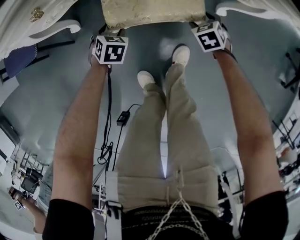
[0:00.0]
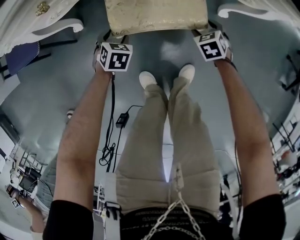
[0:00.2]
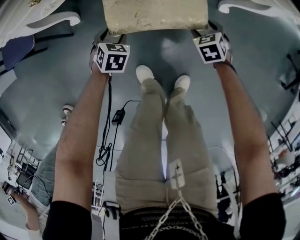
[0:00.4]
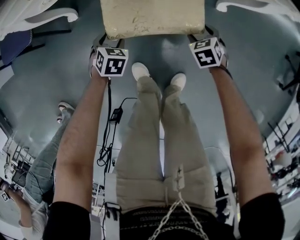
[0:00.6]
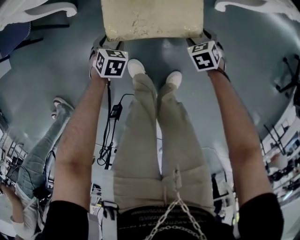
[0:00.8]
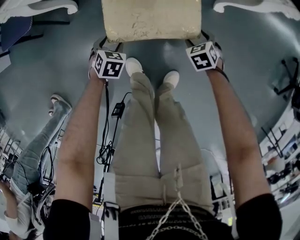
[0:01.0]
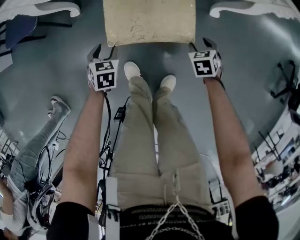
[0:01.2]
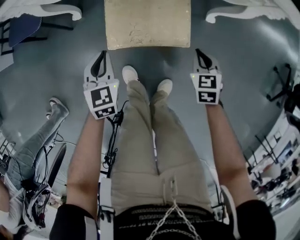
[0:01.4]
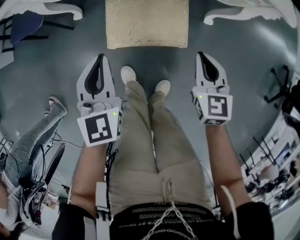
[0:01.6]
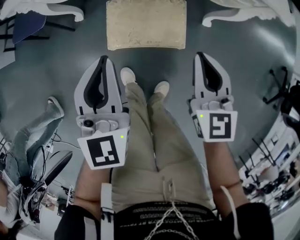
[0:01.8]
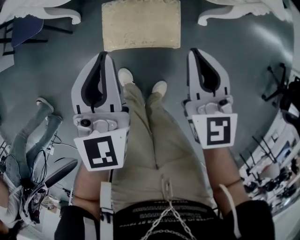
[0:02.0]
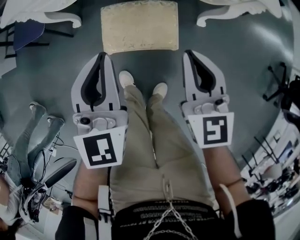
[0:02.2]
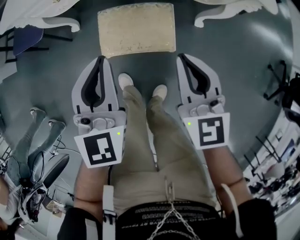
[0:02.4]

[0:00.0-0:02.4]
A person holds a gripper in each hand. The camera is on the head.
0:00.0 to 0:01.2: The right gripper moves some 15 cm. Meanwhile the left gripper ends up about 15 cm from where it was.
0:01.2 to 0:02.4: Both grippers move upward, approximately 35 cm. The left gripper tips its fingers upward by approximately 40 degrees, and closes its fingers. Meanwhile the right gripper points its fingers roughly 50 degrees further upward, and closes its fingers.

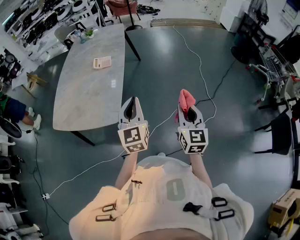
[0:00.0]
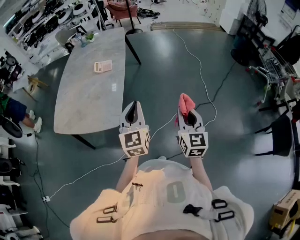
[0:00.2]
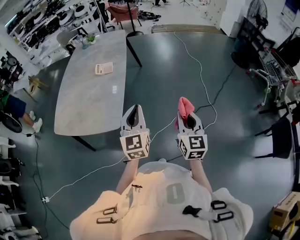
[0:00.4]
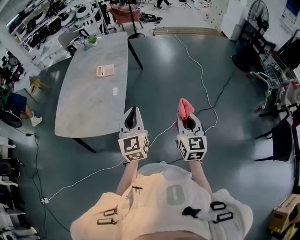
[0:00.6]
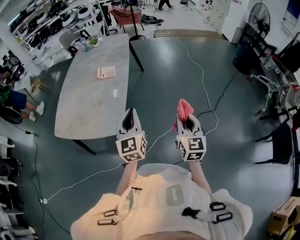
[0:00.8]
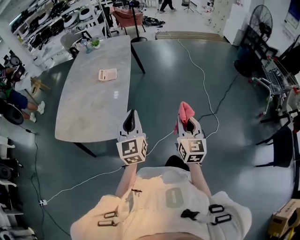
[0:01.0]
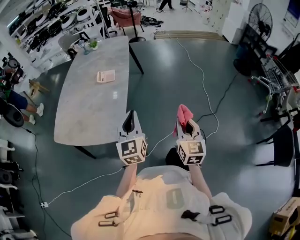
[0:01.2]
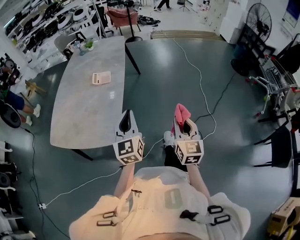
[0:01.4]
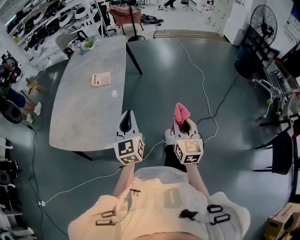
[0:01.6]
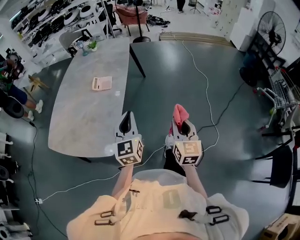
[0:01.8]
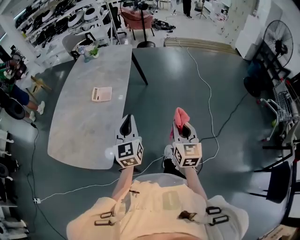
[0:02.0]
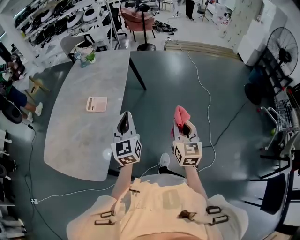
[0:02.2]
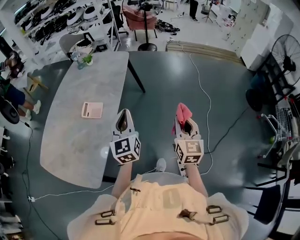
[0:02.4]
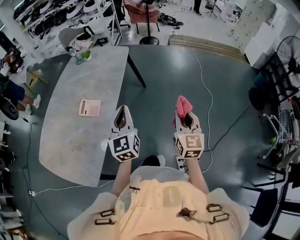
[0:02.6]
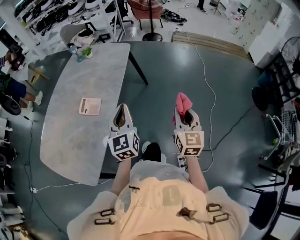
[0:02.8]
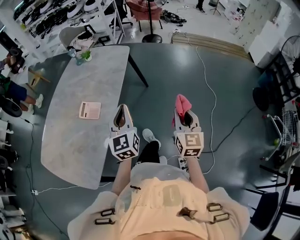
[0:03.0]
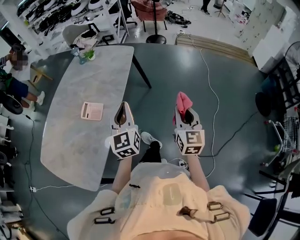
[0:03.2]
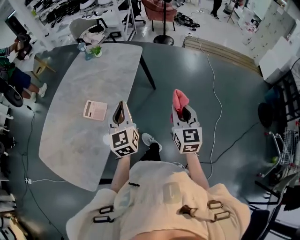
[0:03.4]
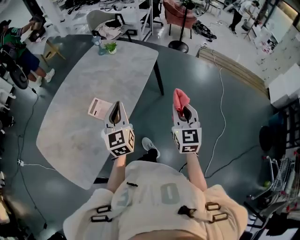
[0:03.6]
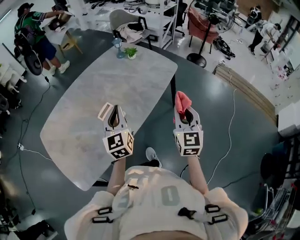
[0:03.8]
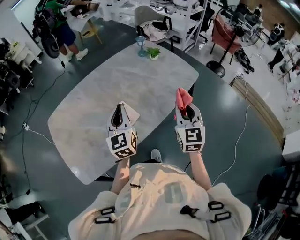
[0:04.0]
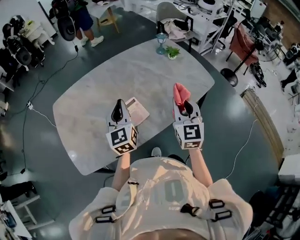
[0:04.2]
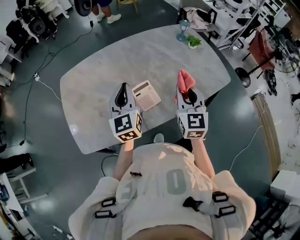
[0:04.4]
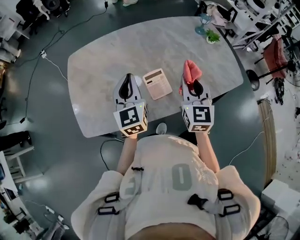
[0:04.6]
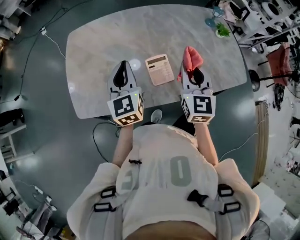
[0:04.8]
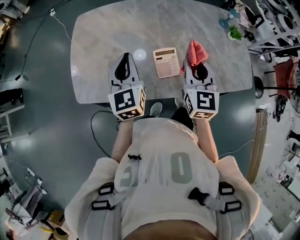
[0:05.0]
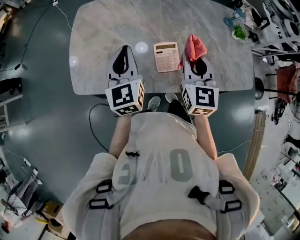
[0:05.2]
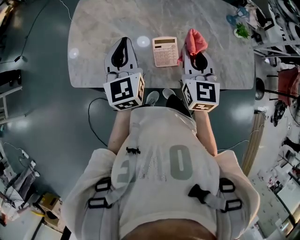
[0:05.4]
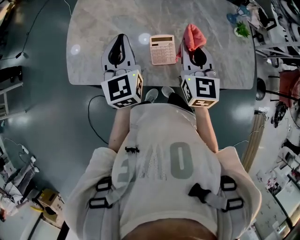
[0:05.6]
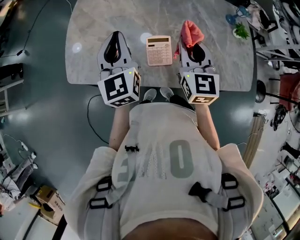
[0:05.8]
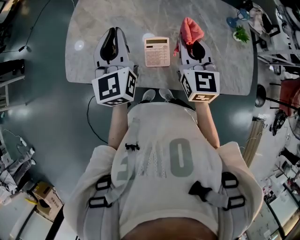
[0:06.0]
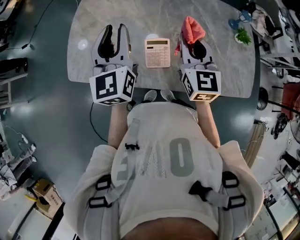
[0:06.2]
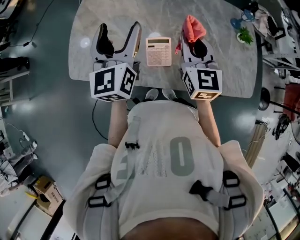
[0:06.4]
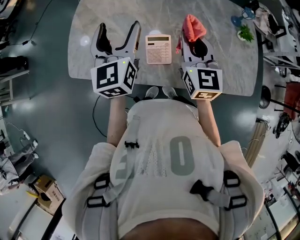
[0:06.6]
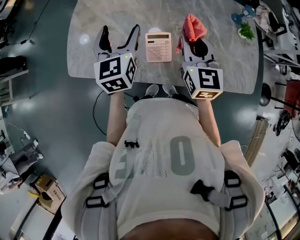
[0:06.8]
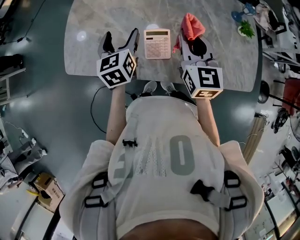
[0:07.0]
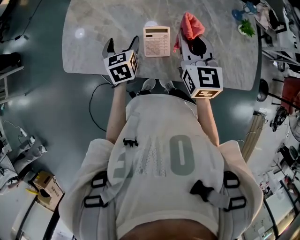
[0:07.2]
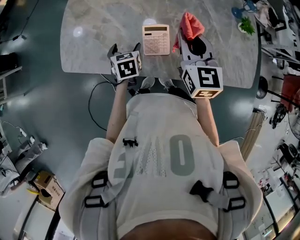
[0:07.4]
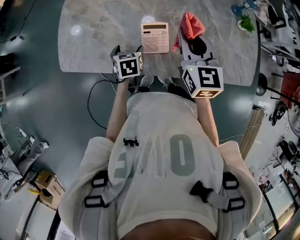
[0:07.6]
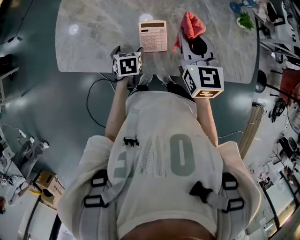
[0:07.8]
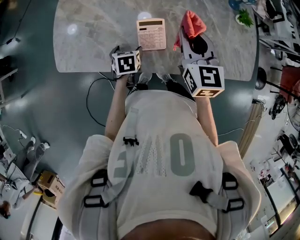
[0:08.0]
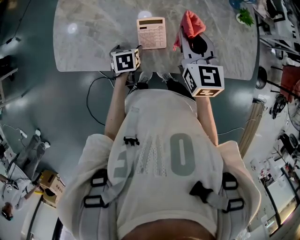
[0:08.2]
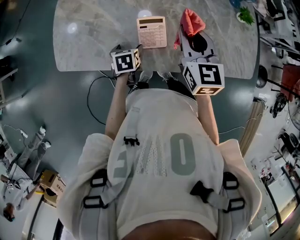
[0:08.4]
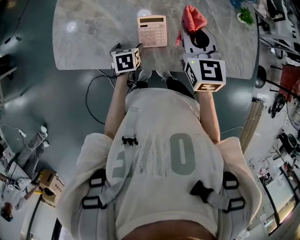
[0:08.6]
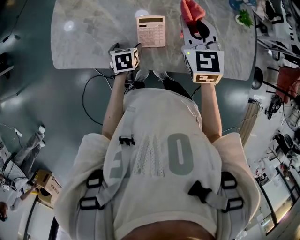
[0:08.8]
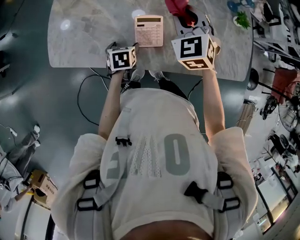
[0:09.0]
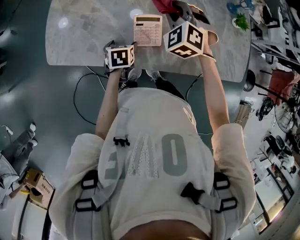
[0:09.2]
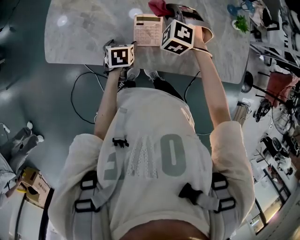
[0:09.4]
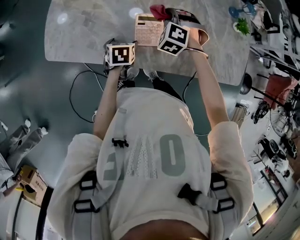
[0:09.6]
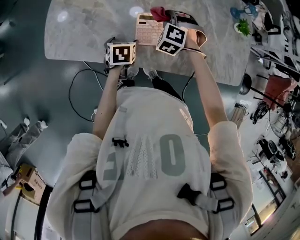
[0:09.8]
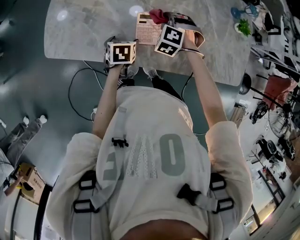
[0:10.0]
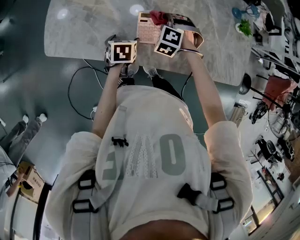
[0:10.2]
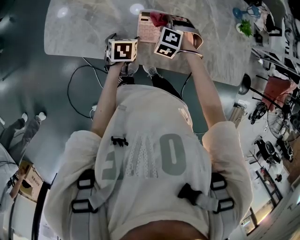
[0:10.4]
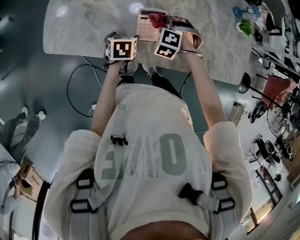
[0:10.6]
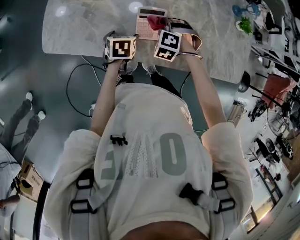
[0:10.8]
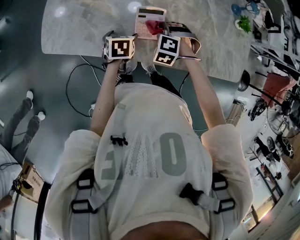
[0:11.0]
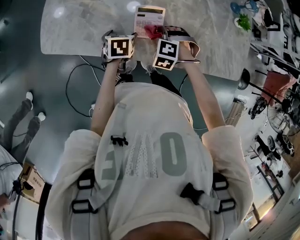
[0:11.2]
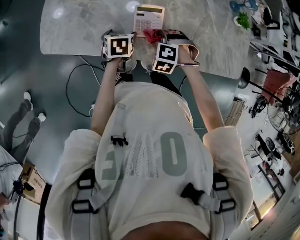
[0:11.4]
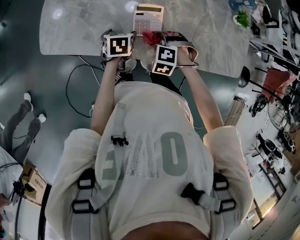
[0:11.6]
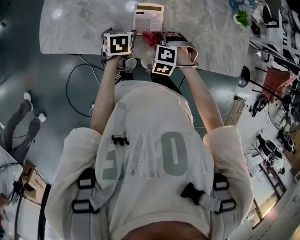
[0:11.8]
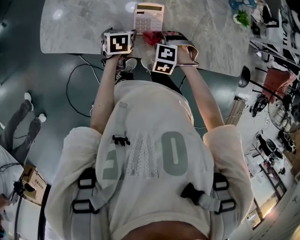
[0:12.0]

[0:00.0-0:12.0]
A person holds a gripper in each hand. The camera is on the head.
0:00.0 to 0:01.6: Both grippers move forward, approximately 10 cm.
0:01.6 to 0:03.0: Both grippers are carried forward, roughly 40 cm.
0:03.0 to 0:04.4: The right gripper ends up some 50 cm from where it was, and changes its angle by roughly 60 degrees; the left gripper changes place by approximately 35 cm, and changes its angle by some 50 degrees.
0:04.4 to 0:06.0: The left gripper changes its angle by some 30 degrees; the right gripper changes place by some 10 cm, and rotates some 30 degrees.
0:06.0 to 0:07.6: The left gripper shifts roughly 30 cm downward, tilts its fingers approximately 50 degrees downward, and opens up.
0:07.6 to 0:09.0: The right gripper shifts approximately 5 cm forward, and swivels approximately 40 degrees.
0:09.0 to 0:10.4: The right gripper shifts roughly 20 cm downward, and rotates some 50 degrees.
0:10.4 to 0:12.0: The right gripper goes about 10 cm backward.

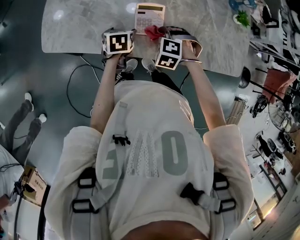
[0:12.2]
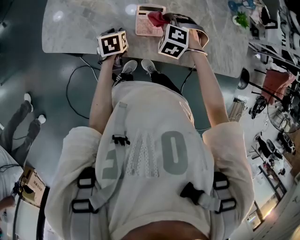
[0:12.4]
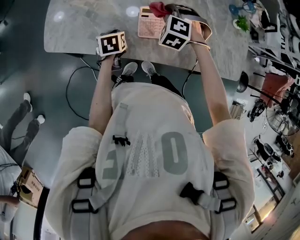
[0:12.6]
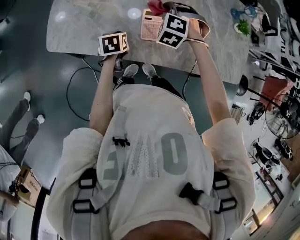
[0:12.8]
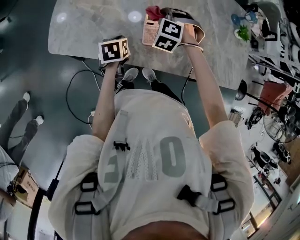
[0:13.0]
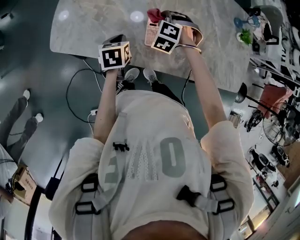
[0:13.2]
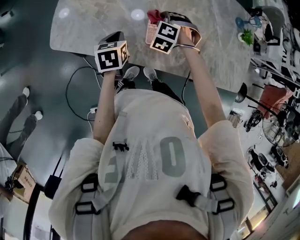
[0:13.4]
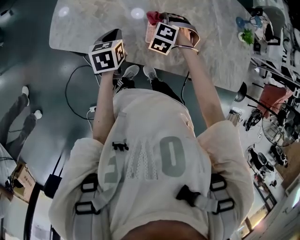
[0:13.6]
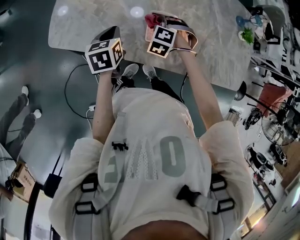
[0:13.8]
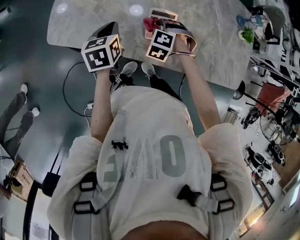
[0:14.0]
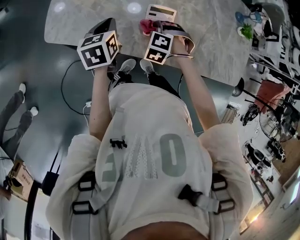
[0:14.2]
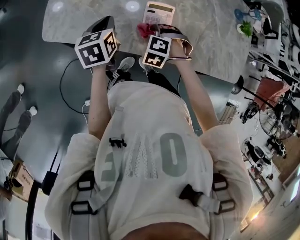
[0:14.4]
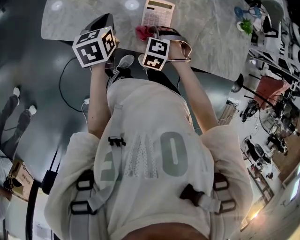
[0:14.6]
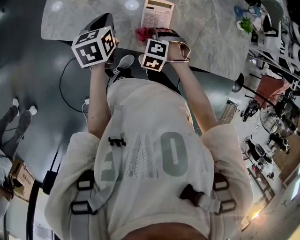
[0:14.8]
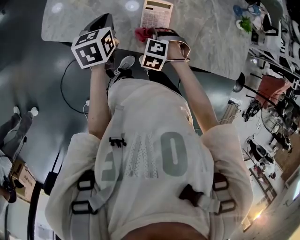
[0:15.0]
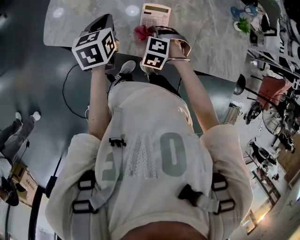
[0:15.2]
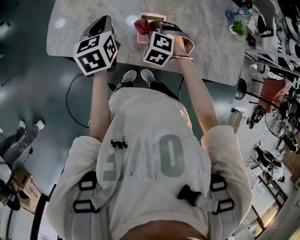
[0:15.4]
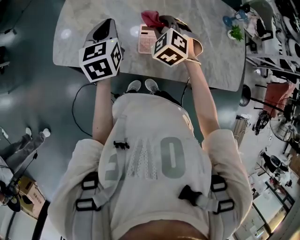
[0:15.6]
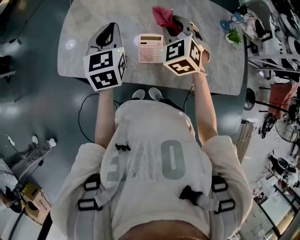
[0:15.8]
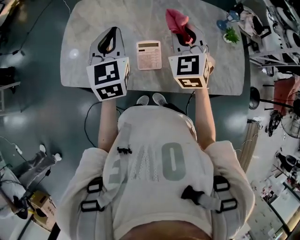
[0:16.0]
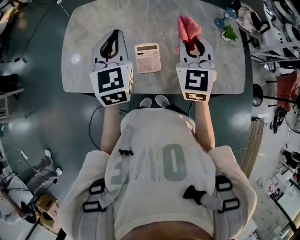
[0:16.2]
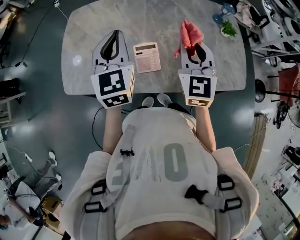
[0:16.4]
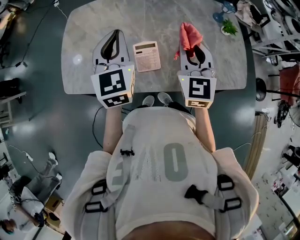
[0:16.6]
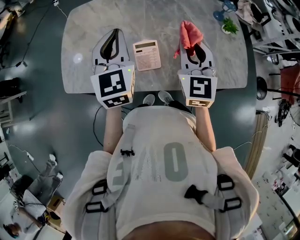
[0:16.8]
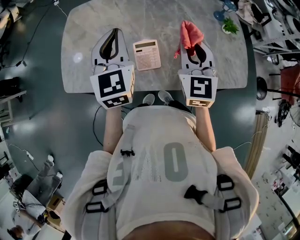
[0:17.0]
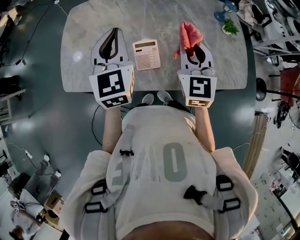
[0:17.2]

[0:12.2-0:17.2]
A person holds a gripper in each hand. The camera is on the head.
0:12.2 to 0:13.8: The right gripper heads forward and to the left, covering approximately 10 cm; the left gripper travels upward and to the left by some 10 cm, and closes up.
0:13.8 to 0:15.6: Both grippers travel together upward, some 15 cm. The left gripper rotates approximately 20 degrees. Meanwhile the right gripper rotates roughly 30 degrees.
0:15.6 to 0:17.2: Both grippers travel together to the right and upward, about 15 cm. The right gripper angles its fingers upward, by some 30 degrees. Meanwhile the left gripper rotates roughly 30 degrees.

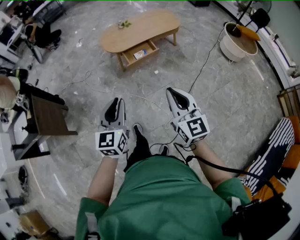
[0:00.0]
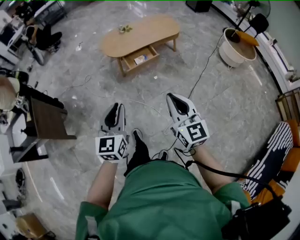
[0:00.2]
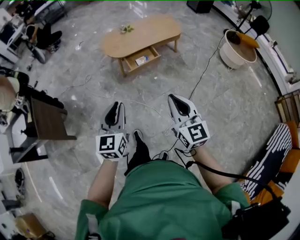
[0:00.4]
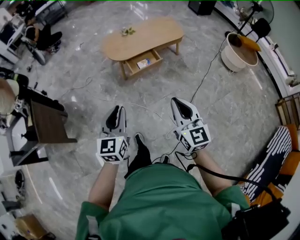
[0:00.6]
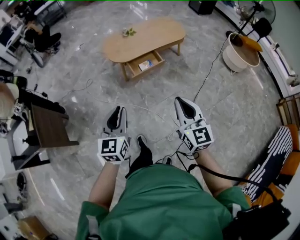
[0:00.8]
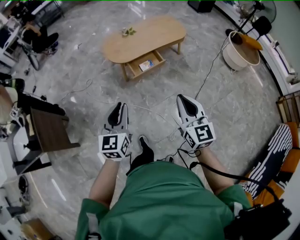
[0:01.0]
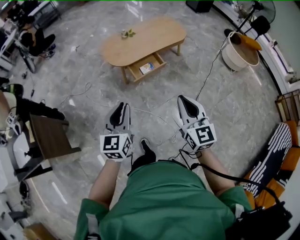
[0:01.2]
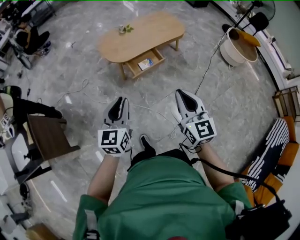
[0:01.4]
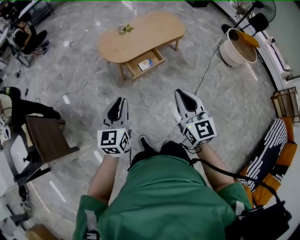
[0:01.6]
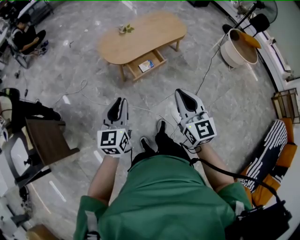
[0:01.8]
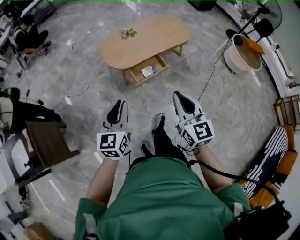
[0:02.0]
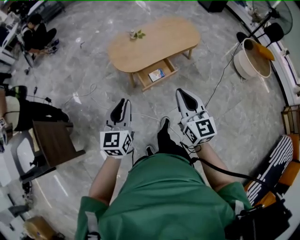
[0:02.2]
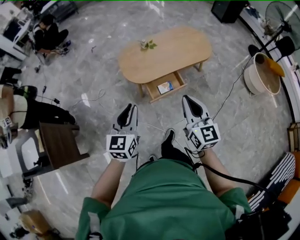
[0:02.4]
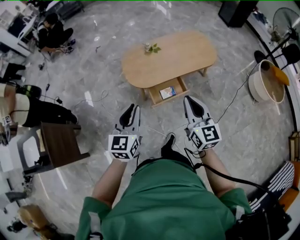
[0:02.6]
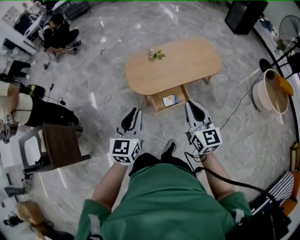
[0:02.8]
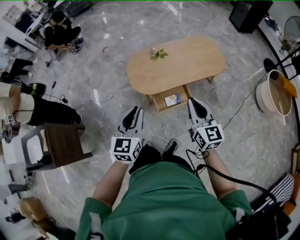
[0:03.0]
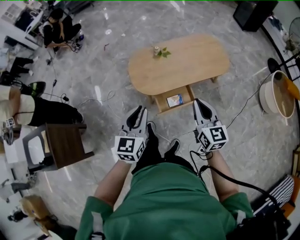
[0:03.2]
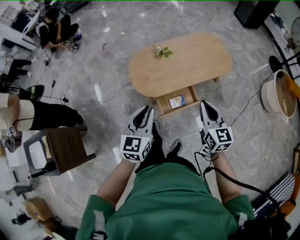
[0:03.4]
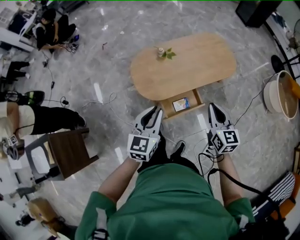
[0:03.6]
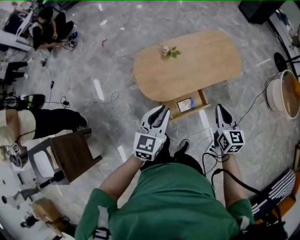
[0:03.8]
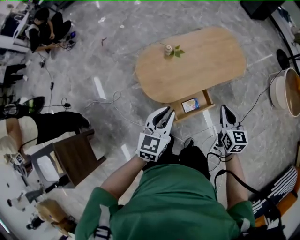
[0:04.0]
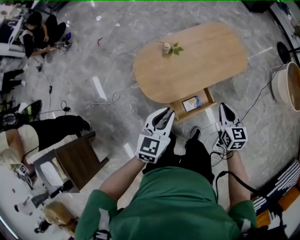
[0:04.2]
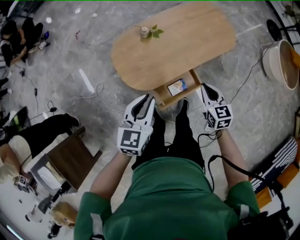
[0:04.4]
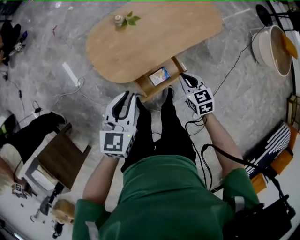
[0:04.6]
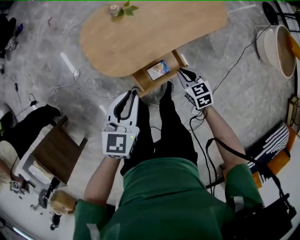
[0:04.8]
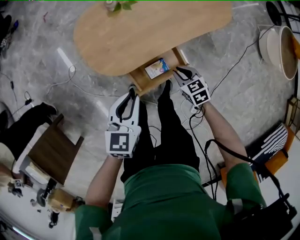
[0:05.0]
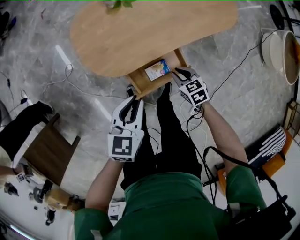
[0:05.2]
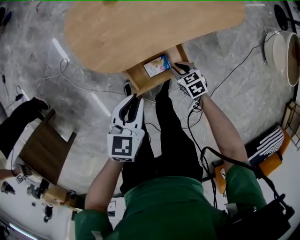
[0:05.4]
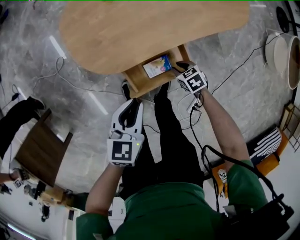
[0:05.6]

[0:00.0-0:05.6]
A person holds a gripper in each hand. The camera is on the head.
0:00.0 to 0:01.4: The grippers both shift forward and to the left by some 20 cm.
0:01.4 to 0:02.8: The two grippers go about 30 cm forward.
0:02.8 to 0:04.2: The grippers both shift forward and downward by some 25 cm. The left gripper changes its angle by about 20 degrees. Meanwhile the right gripper swivels some 30 degrees.
0:04.2 to 0:05.6: The left gripper is displaced downward by some 25 cm, and changes its angle by about 20 degrees, while the right gripper is displaced downward by roughly 40 cm, points its fingers about 30 degrees further downward, and opens up.
